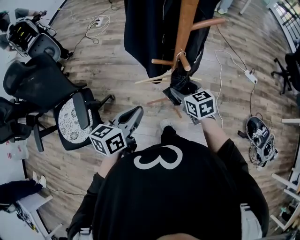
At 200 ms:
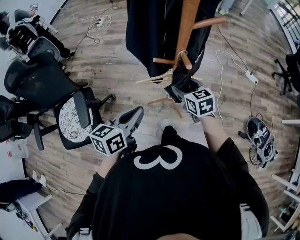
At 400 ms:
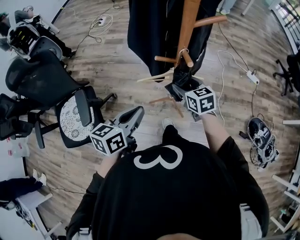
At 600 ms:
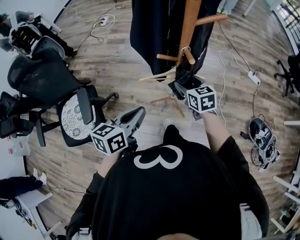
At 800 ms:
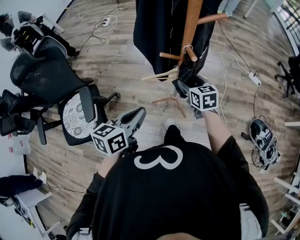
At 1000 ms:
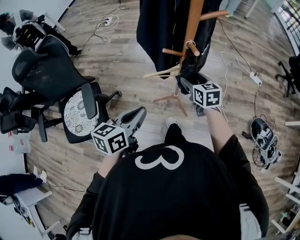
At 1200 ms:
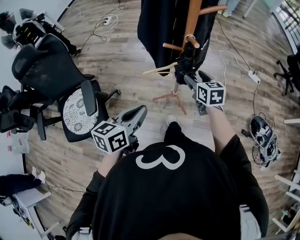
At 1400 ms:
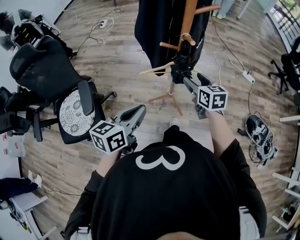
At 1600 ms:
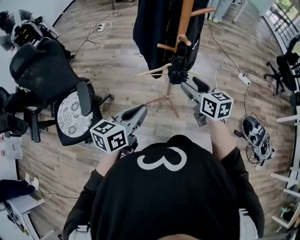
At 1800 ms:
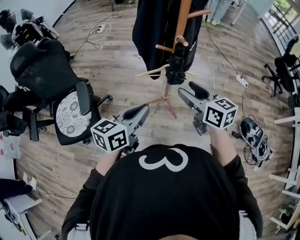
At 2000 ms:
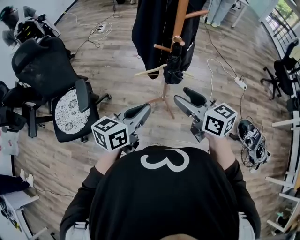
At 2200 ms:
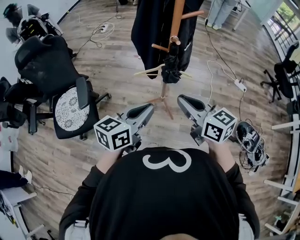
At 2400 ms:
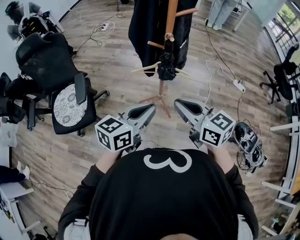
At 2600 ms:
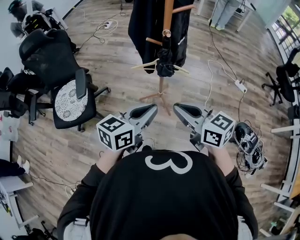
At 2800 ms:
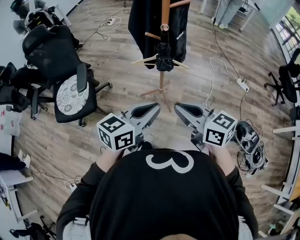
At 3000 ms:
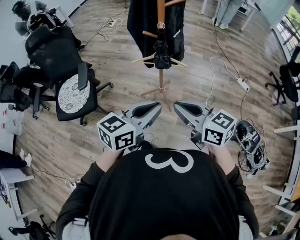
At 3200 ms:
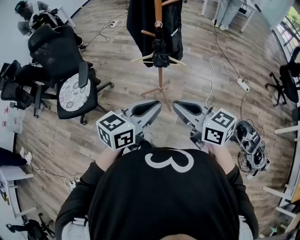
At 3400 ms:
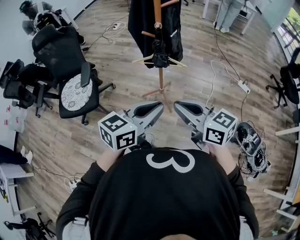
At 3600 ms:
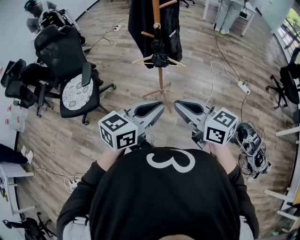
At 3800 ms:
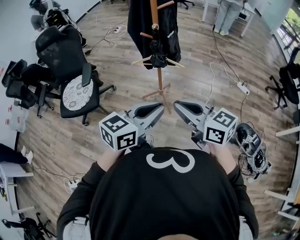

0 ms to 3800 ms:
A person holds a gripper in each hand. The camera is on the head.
0 ms to 1200 ms: The left gripper is displaced backward by some 10 cm.
1200 ms to 2600 ms: The left gripper shifts roughly 20 cm to the right, backward and upward, while the right gripper is displaced backward and upward by about 30 cm, turns by approximately 30 degrees, and closes its fingers.
2600 ms to 3800 ms: The grippers both shift backward and to the right by about 15 cm.

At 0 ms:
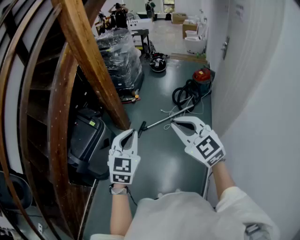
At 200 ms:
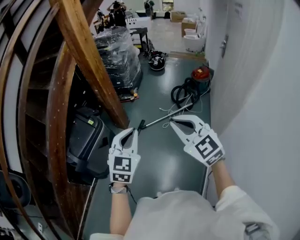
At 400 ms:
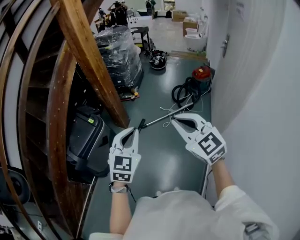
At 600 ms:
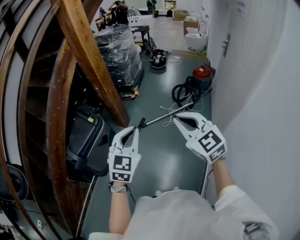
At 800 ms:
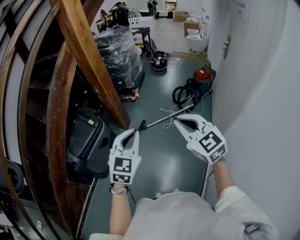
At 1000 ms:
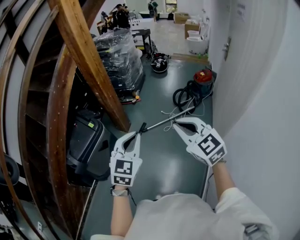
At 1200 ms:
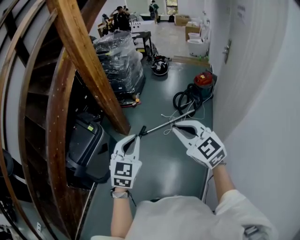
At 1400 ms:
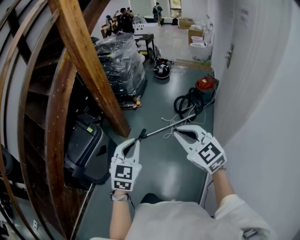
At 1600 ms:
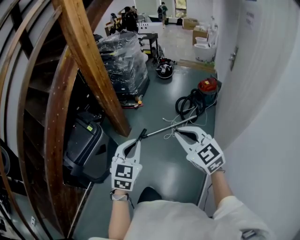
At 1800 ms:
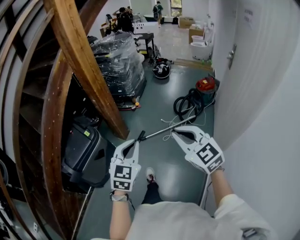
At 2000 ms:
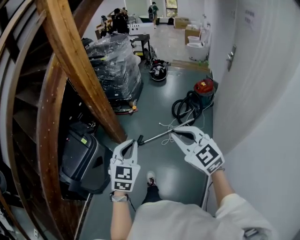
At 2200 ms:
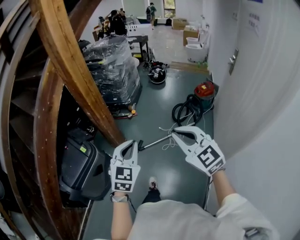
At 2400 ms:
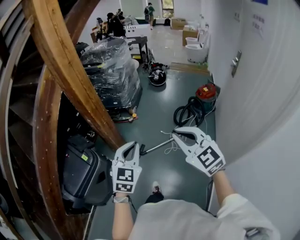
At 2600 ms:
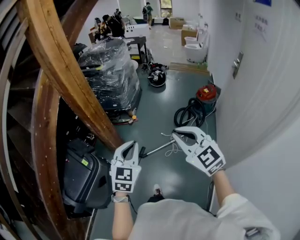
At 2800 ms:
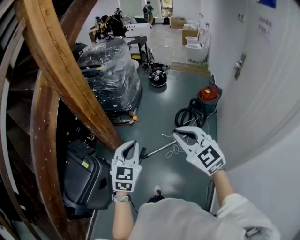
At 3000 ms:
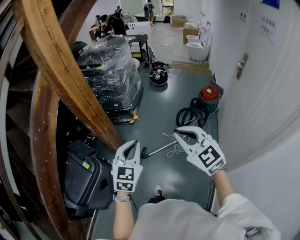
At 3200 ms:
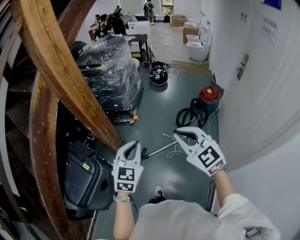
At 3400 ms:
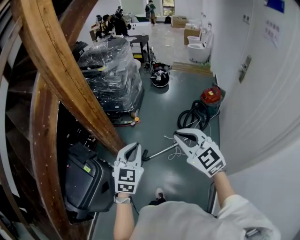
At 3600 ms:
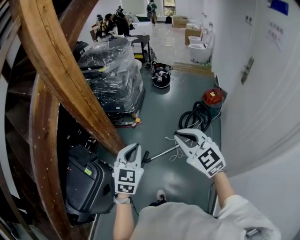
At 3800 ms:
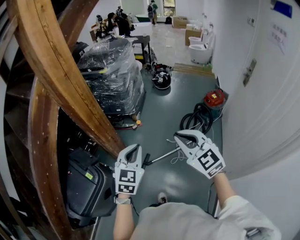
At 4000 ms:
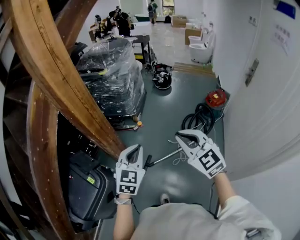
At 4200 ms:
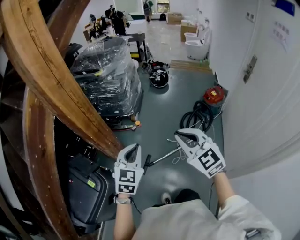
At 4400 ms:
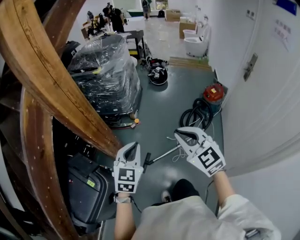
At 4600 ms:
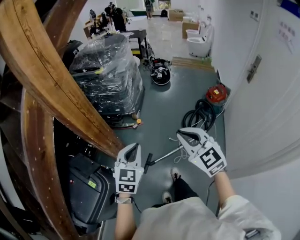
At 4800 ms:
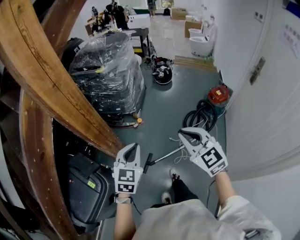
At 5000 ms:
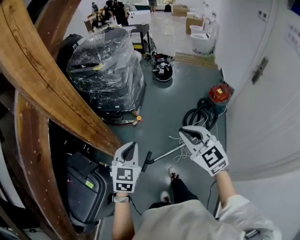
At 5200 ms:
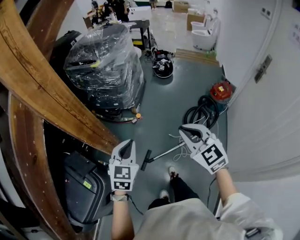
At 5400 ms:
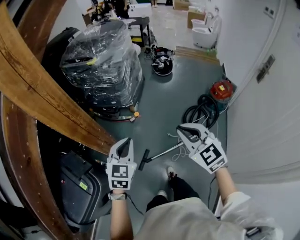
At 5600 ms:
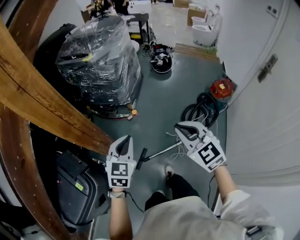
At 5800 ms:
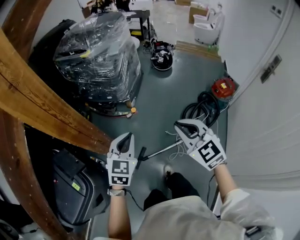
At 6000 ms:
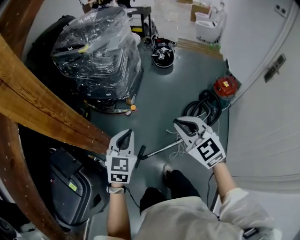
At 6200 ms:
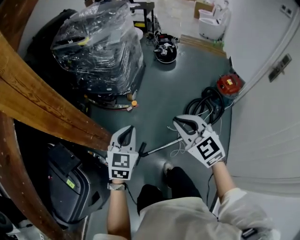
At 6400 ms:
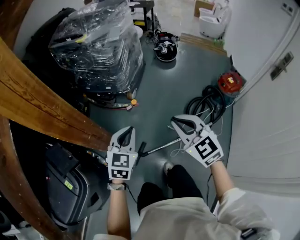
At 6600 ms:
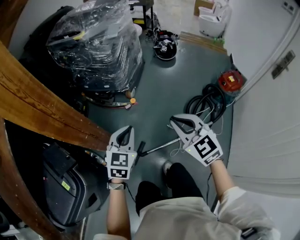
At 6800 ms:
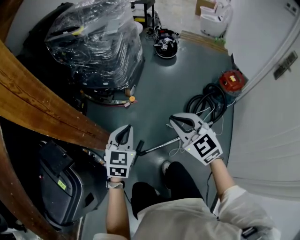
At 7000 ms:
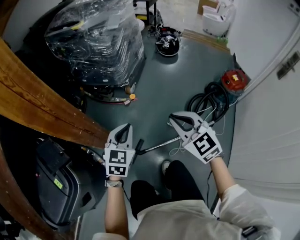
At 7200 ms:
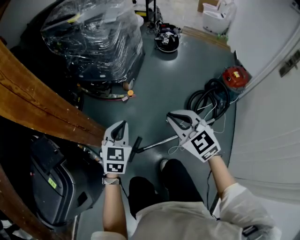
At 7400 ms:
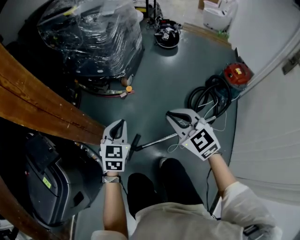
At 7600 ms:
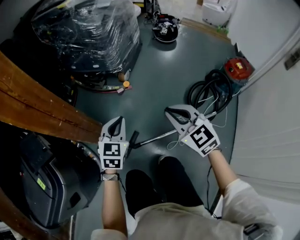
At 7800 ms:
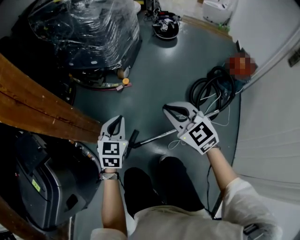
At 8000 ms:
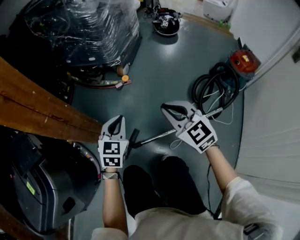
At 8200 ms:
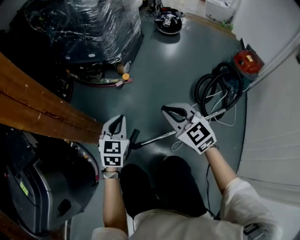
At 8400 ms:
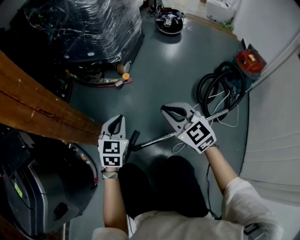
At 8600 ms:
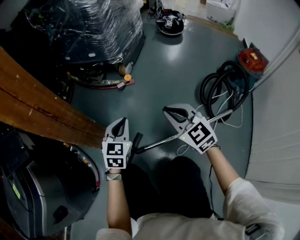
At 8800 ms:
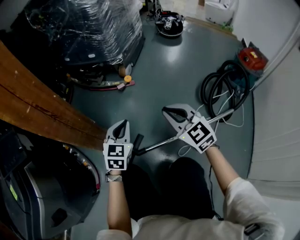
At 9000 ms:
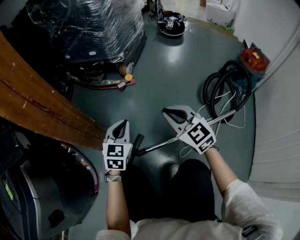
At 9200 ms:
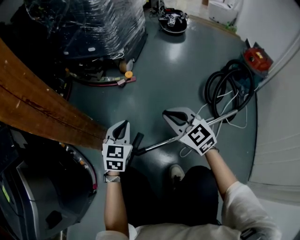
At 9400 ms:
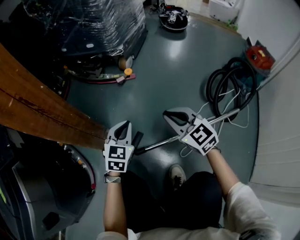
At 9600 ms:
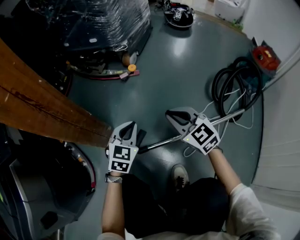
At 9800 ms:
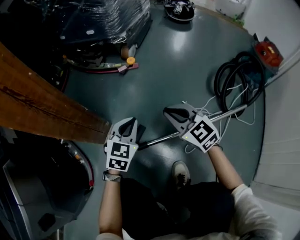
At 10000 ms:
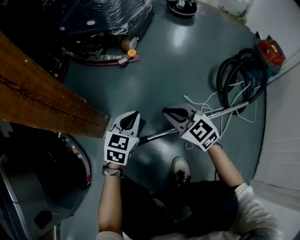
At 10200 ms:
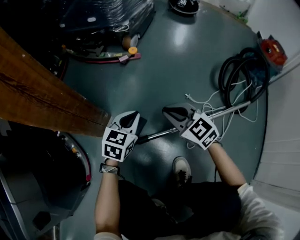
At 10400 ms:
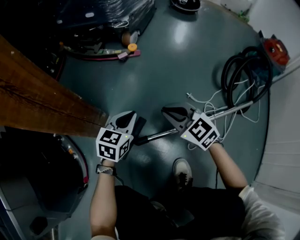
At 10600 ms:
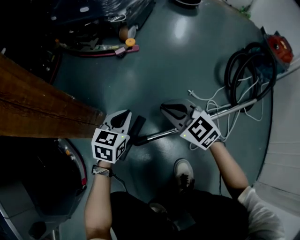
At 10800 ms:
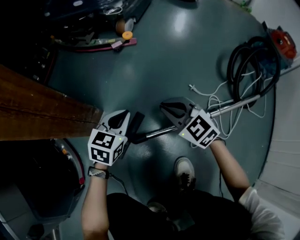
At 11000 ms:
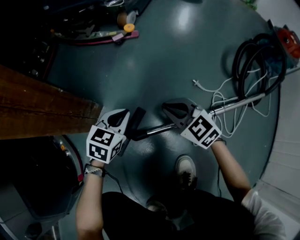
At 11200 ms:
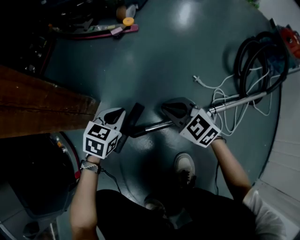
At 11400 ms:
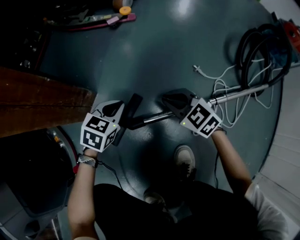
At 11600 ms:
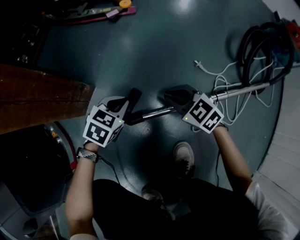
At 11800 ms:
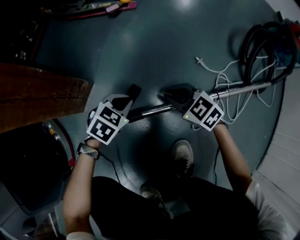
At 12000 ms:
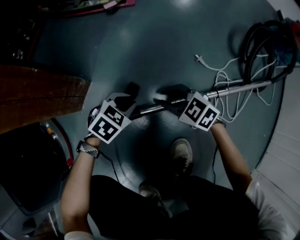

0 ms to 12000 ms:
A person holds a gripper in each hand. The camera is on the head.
0 ms to 1600 ms: The left gripper moves to the right, roughly 5 cm; the right gripper shifts approximately 10 cm to the right and forward.
1600 ms to 3000 ms: Both grippers travel together forward, some 30 cm.
3000 ms to 4400 ms: Both grippers travel together forward, roughly 15 cm.
4400 ms to 6000 ms: Both grippers move forward and downward, some 20 cm.
6000 ms to 7600 ms: The two grippers go approximately 25 cm downward.
7600 ms to 9000 ms: The two grippers go approximately 25 cm downward.
9000 ms to 10400 ms: The grippers both shift downward by approximately 15 cm.
10400 ms to 12000 ms: The grippers both shift downward by some 20 cm. The right gripper rotates some 20 degrees; the left gripper swivels roughly 40 degrees.

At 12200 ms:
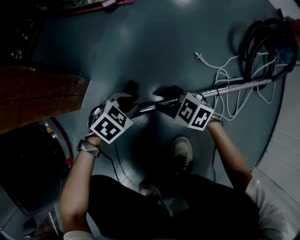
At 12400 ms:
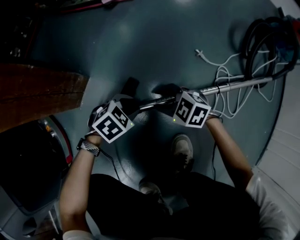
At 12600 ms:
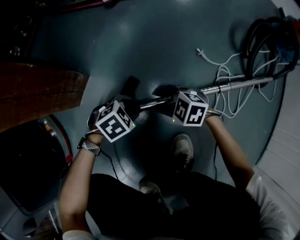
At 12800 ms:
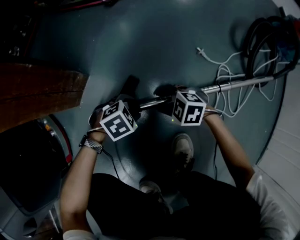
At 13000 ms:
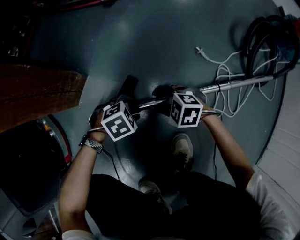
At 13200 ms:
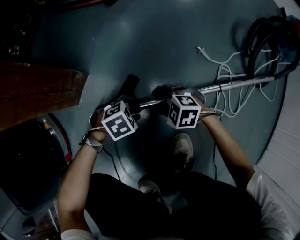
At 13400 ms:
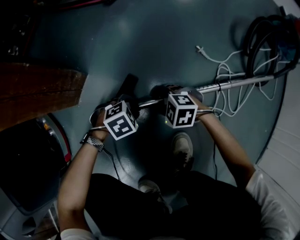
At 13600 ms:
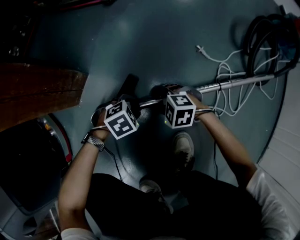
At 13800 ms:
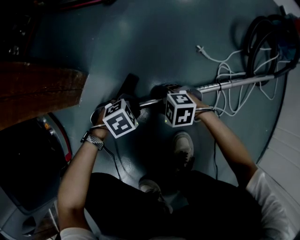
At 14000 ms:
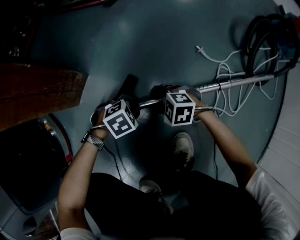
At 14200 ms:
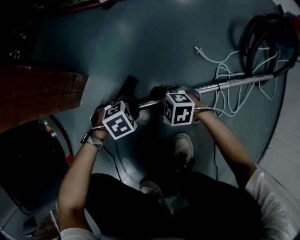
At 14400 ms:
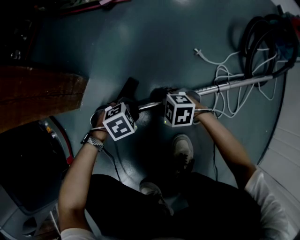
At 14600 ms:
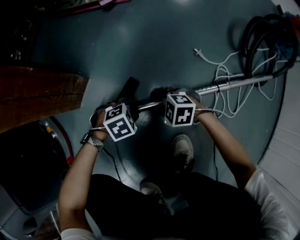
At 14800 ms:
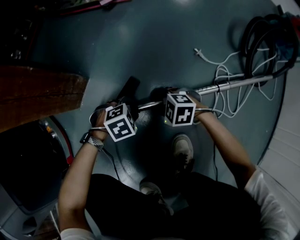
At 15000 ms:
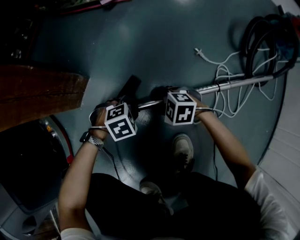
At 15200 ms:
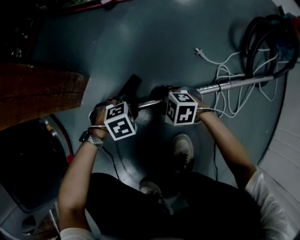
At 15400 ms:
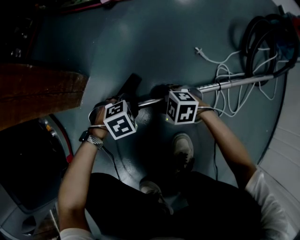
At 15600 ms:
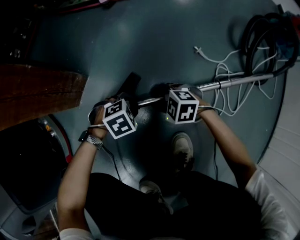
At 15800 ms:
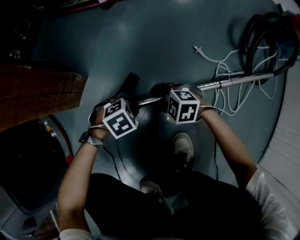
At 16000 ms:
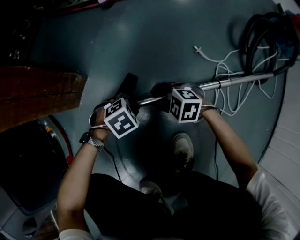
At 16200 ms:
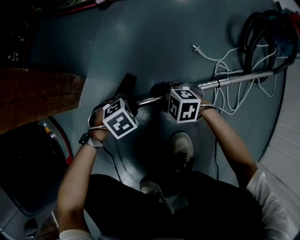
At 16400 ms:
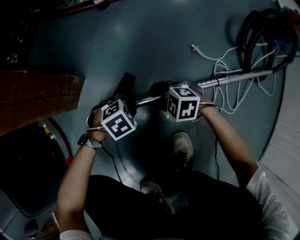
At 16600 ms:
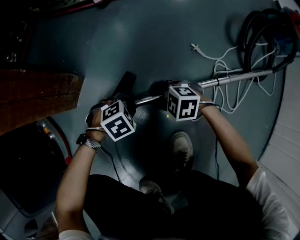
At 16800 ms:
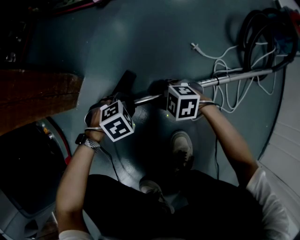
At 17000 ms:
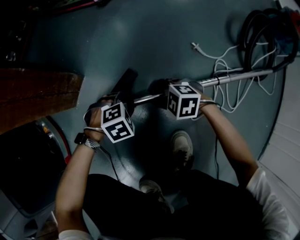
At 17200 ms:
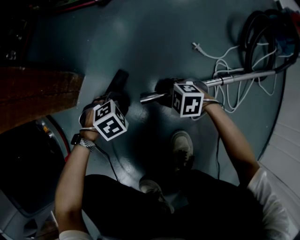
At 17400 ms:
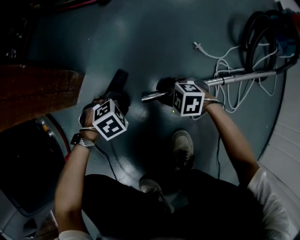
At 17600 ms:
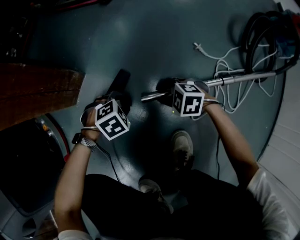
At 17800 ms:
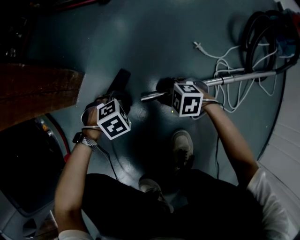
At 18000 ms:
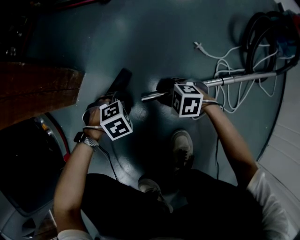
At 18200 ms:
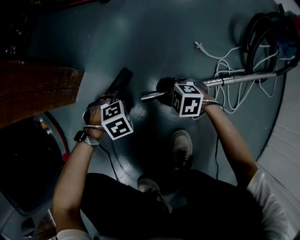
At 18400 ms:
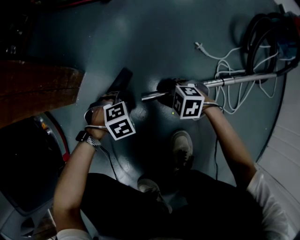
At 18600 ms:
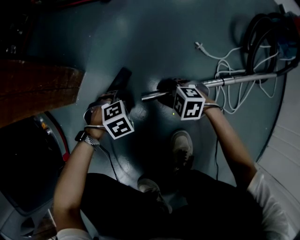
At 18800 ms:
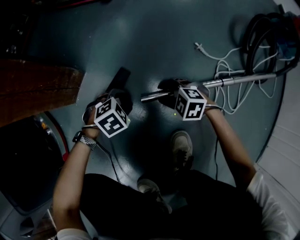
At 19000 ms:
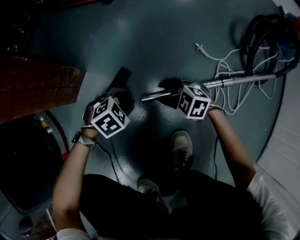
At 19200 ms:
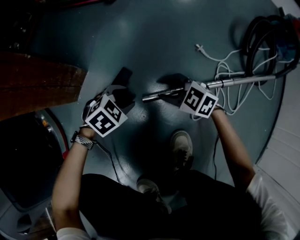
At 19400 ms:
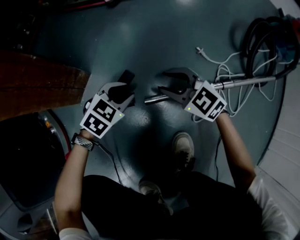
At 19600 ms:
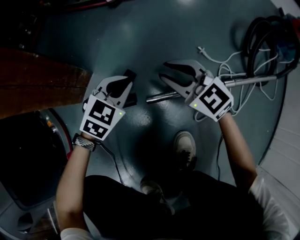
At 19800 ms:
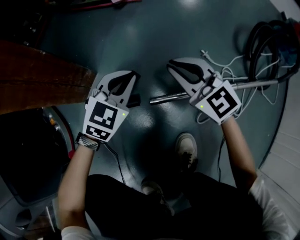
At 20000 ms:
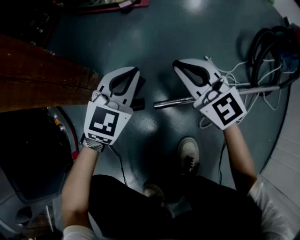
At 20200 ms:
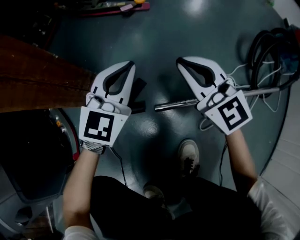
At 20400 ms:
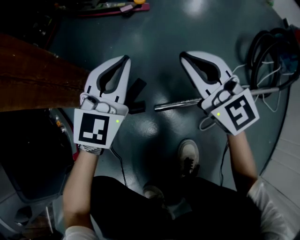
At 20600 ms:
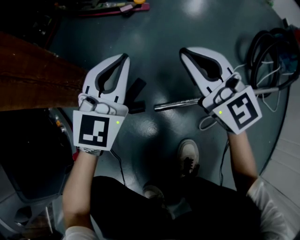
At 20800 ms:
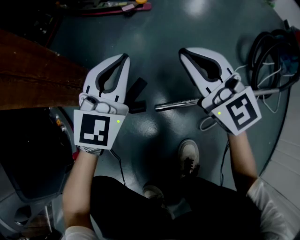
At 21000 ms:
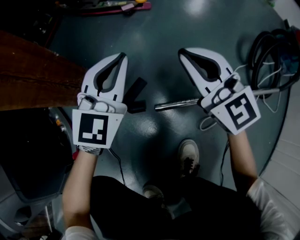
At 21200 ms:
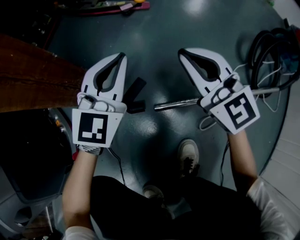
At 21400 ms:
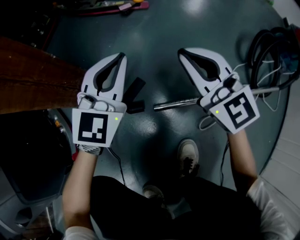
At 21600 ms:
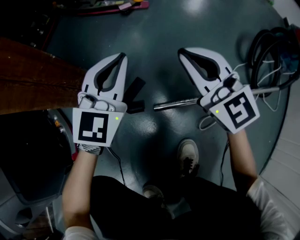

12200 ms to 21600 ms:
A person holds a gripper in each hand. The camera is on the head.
12200 ms to 13800 ms: Both grippers move downward, roughly 5 cm. The right gripper rotates about 20 degrees. Meanwhile the left gripper opens up.
13800 ms to 18400 ms: The grippers move only a little.
18400 ms to 20000 ms: The two grippers go about 25 cm upward. The right gripper tilts its fingers approximately 50 degrees upward, and closes its fingers; the left gripper tilts its fingers some 60 degrees upward, and closes its fingers.
20000 ms to 21600 ms: Both grippers travel together upward, roughly 5 cm.
